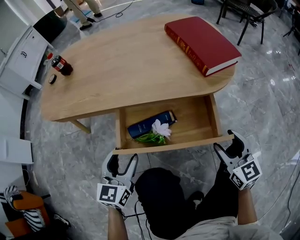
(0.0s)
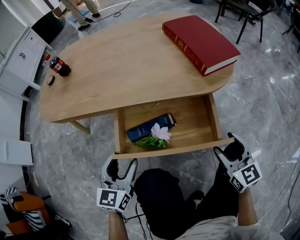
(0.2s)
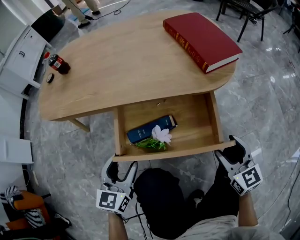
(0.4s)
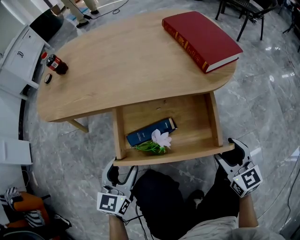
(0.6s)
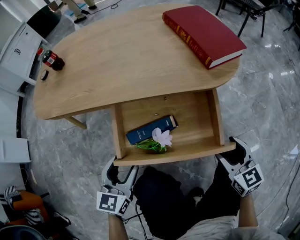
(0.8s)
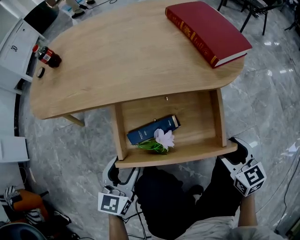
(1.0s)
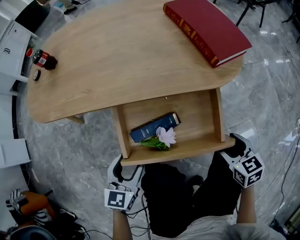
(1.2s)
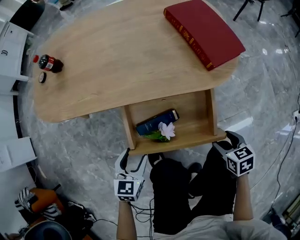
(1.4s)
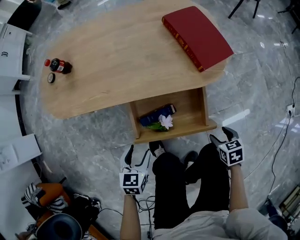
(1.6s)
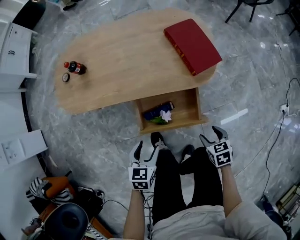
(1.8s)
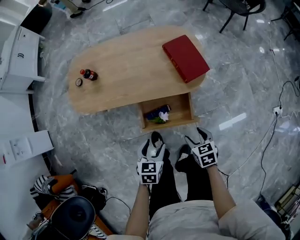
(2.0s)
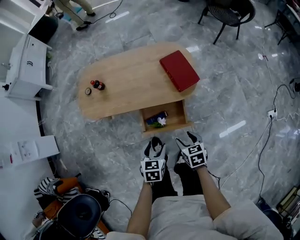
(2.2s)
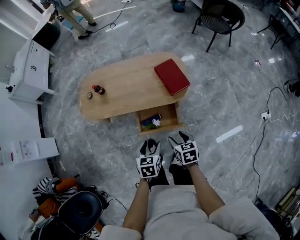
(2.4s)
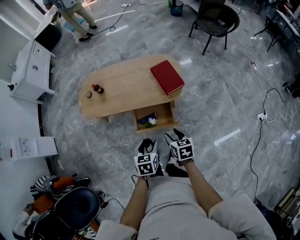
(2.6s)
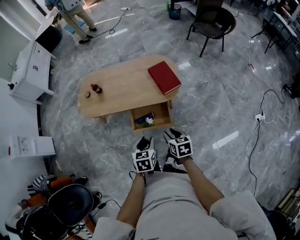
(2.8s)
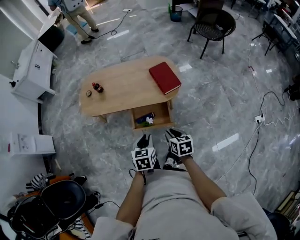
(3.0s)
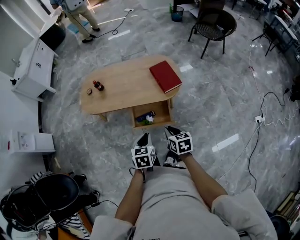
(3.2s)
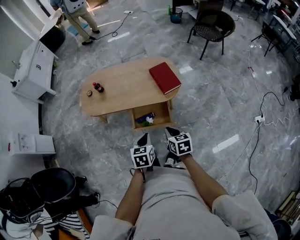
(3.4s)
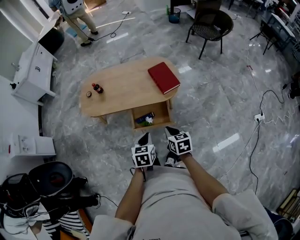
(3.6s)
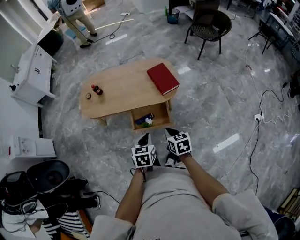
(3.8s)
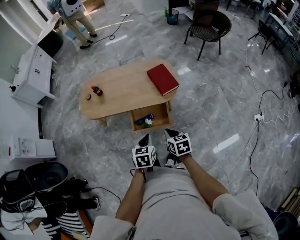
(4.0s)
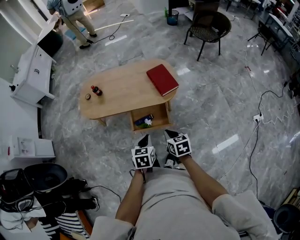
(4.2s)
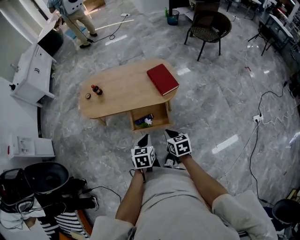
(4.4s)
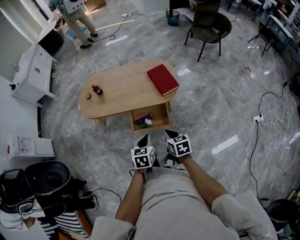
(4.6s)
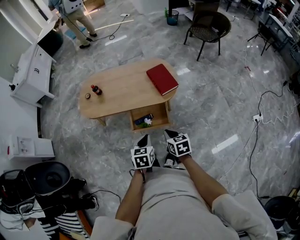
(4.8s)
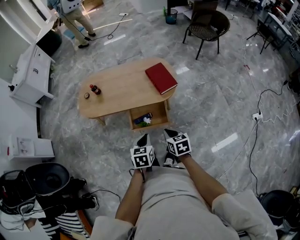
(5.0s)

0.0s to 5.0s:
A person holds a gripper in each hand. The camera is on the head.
0.0s to 1.6s: The left gripper moves roughly 5 cm, and rotates some 30 degrees. The right gripper heads backward, covering about 5 cm, and points its fingers some 50 degrees further downward.
1.6s to 3.4s: The two grippers go about 40 cm upward. The right gripper swivels approximately 30 degrees, and closes its fingers. The left gripper closes its fingers.
3.4s to 5.0s: There are only small adjustments of the grippers.

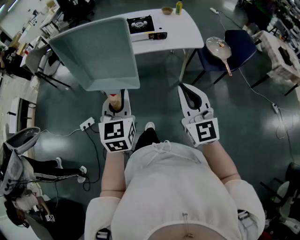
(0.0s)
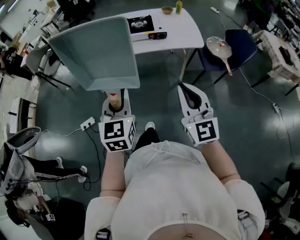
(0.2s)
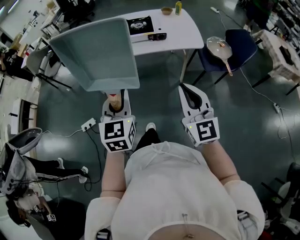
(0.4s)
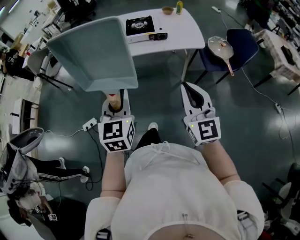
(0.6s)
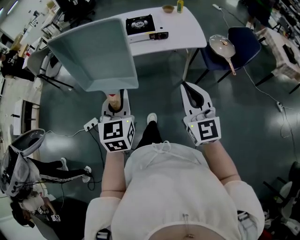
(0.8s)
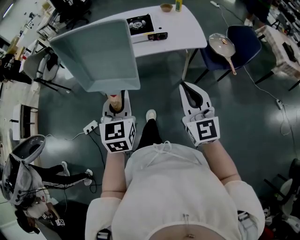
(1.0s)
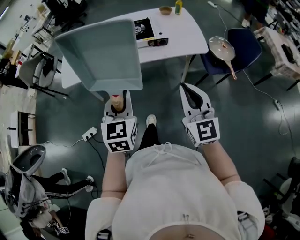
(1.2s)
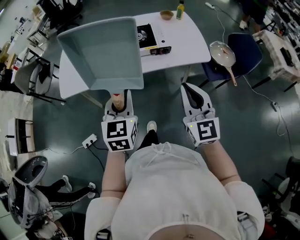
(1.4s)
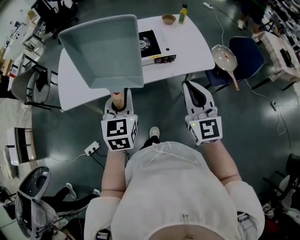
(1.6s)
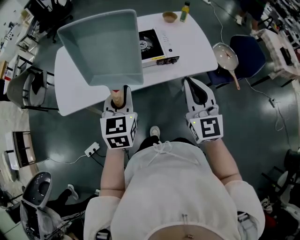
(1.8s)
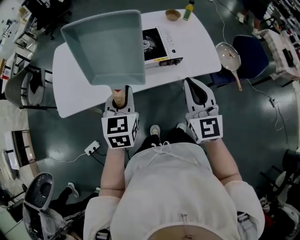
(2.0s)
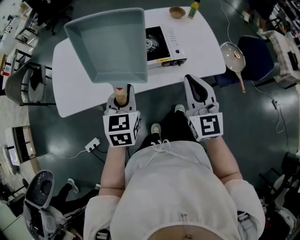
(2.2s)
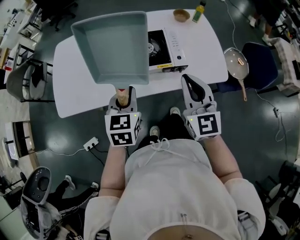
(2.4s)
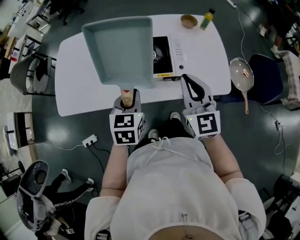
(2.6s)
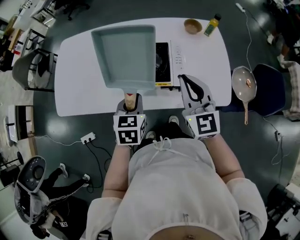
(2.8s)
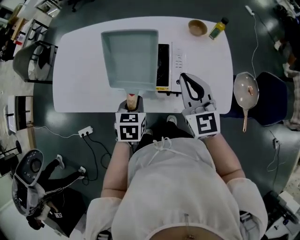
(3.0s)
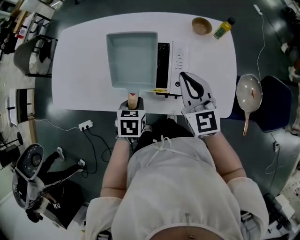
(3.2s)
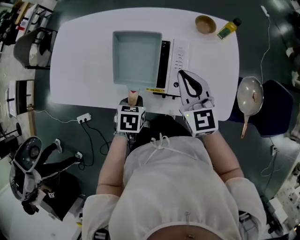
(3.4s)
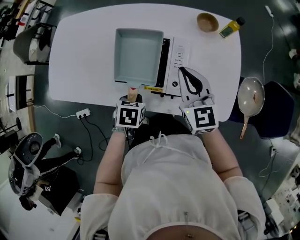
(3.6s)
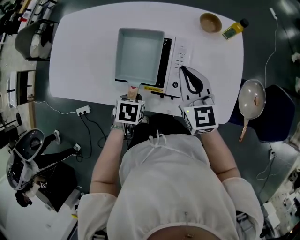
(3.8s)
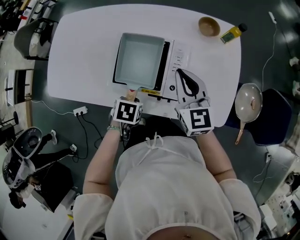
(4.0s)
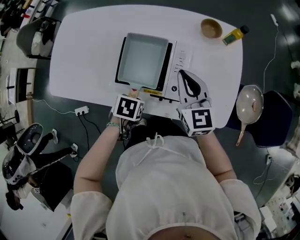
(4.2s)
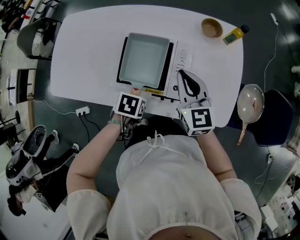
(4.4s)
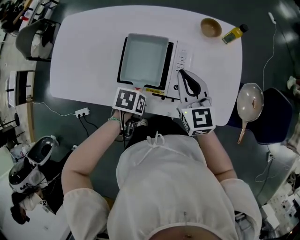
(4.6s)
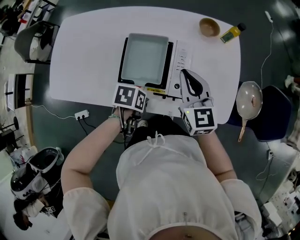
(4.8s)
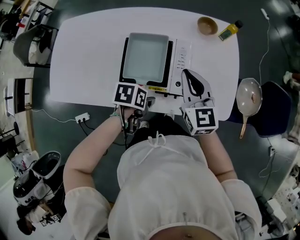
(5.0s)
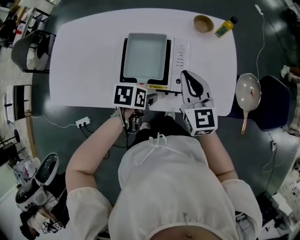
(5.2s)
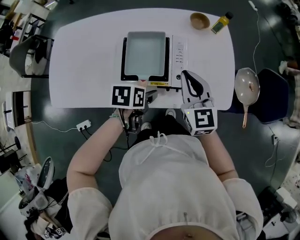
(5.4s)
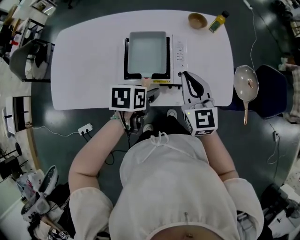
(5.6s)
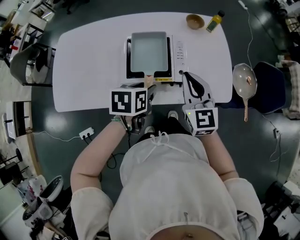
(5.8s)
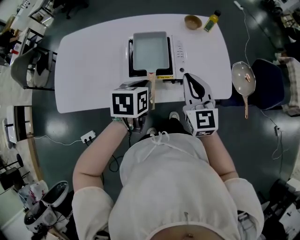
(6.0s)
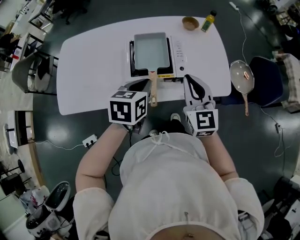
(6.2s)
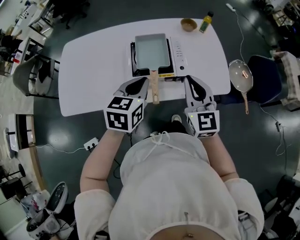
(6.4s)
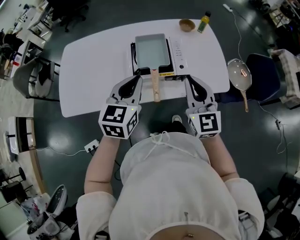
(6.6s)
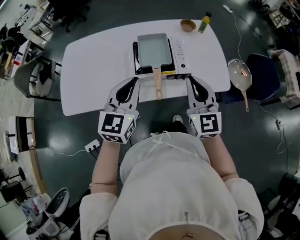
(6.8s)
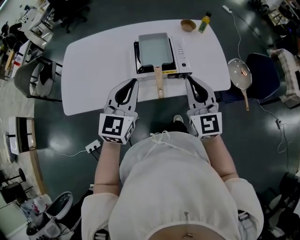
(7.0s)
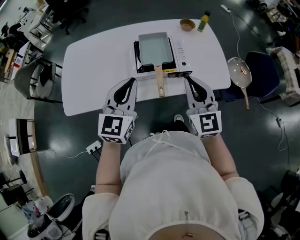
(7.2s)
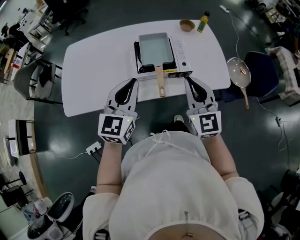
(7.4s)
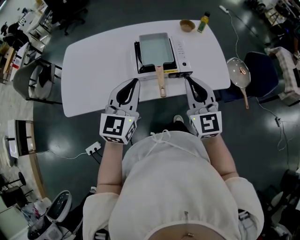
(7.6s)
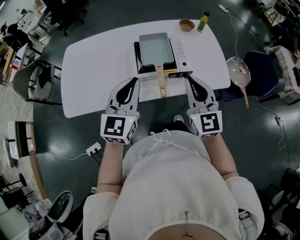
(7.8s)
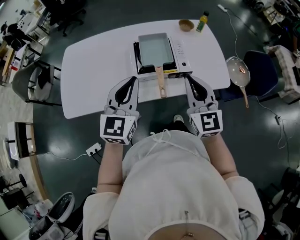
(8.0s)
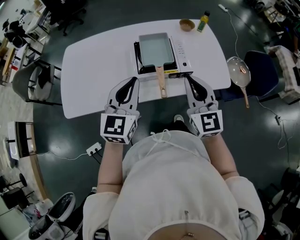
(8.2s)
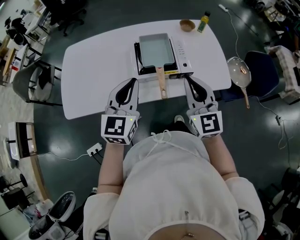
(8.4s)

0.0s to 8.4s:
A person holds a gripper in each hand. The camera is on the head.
0.0s to 1.4s: The two grippers go some 20 cm forward.
1.4s to 2.8s: The right gripper shifts approximately 35 cm forward. Meanwhile the left gripper heads forward and downward, covering roughly 30 cm, and changes its angle by some 20 degrees.
2.8s to 4.2s: The left gripper goes some 15 cm downward, and points its fingers some 40 degrees further downward, while the right gripper changes place by some 15 cm.
4.2s to 5.6s: The left gripper goes some 10 cm upward, turns by approximately 20 degrees, and opens, while the right gripper changes place by about 10 cm.
5.6s to 7.0s: The left gripper is displaced upward, backward and to the left by approximately 25 cm, angles its fingers upward, by about 50 degrees, and closes up; the right gripper goes roughly 15 cm backward and upward.
7.0s to 8.4s: The grippers stay close to where they were, moving slightly.

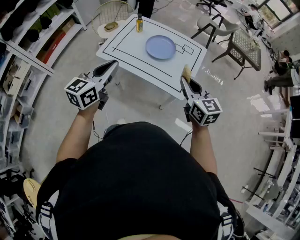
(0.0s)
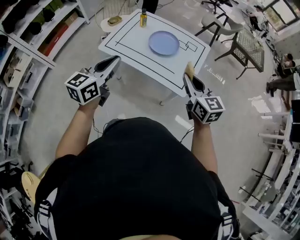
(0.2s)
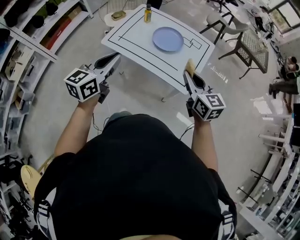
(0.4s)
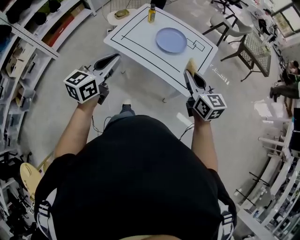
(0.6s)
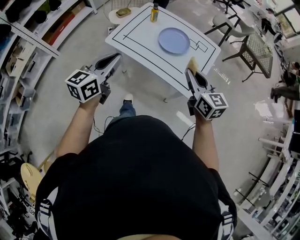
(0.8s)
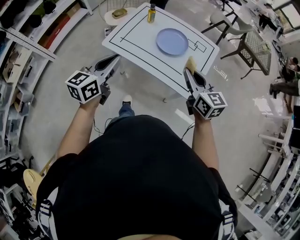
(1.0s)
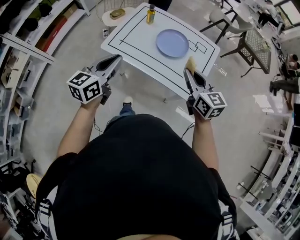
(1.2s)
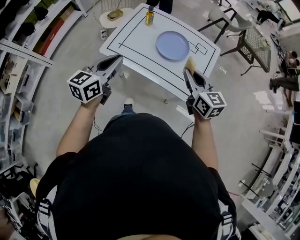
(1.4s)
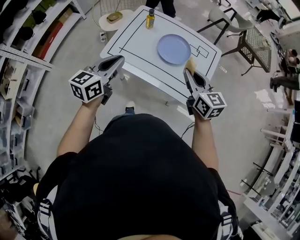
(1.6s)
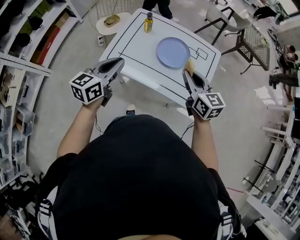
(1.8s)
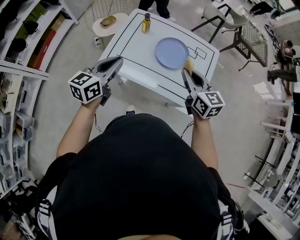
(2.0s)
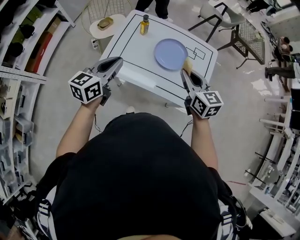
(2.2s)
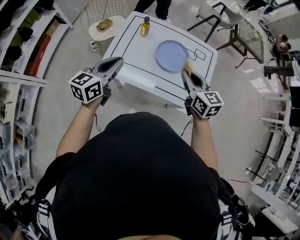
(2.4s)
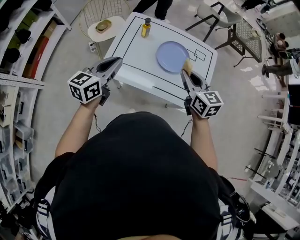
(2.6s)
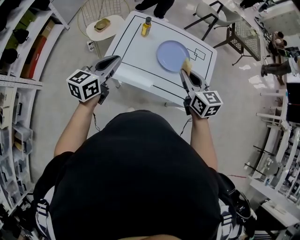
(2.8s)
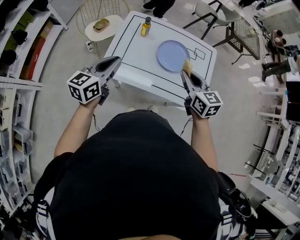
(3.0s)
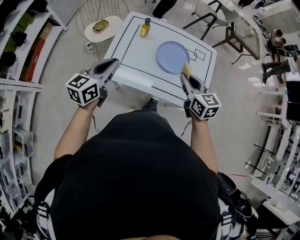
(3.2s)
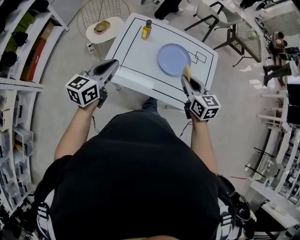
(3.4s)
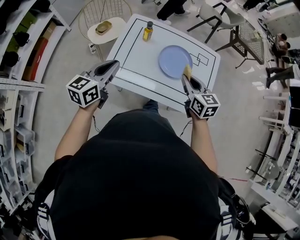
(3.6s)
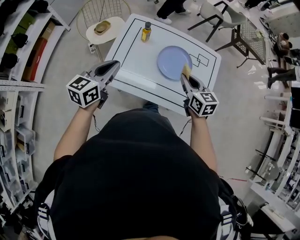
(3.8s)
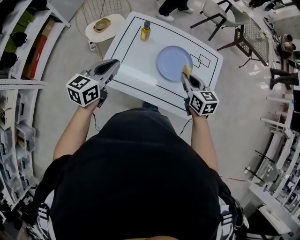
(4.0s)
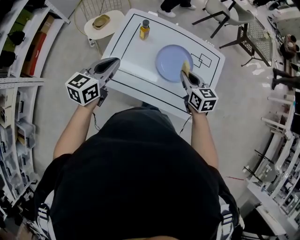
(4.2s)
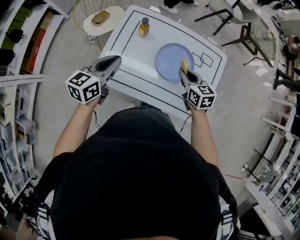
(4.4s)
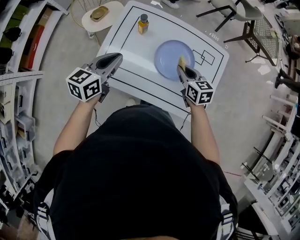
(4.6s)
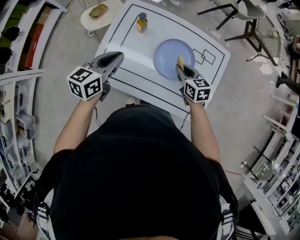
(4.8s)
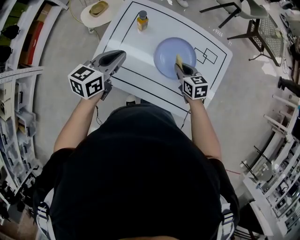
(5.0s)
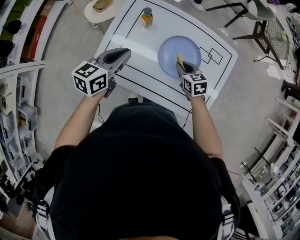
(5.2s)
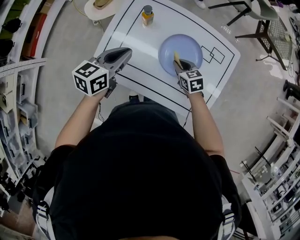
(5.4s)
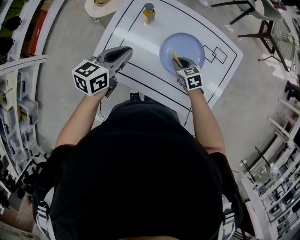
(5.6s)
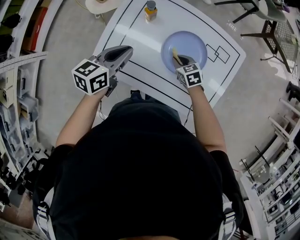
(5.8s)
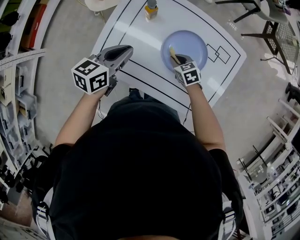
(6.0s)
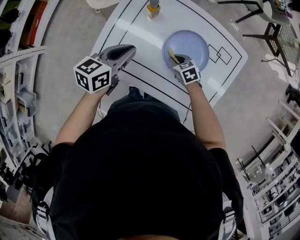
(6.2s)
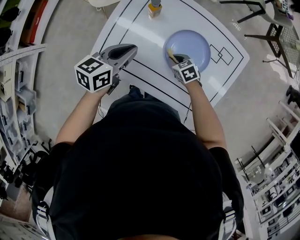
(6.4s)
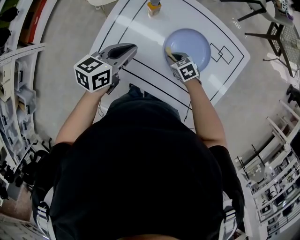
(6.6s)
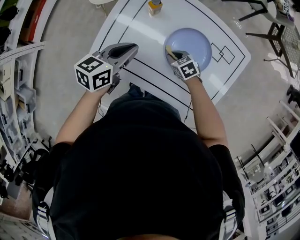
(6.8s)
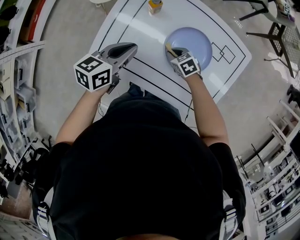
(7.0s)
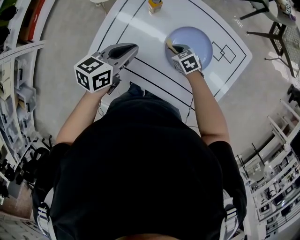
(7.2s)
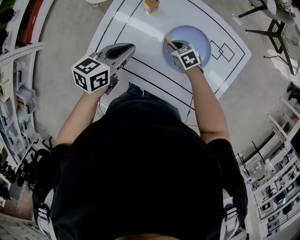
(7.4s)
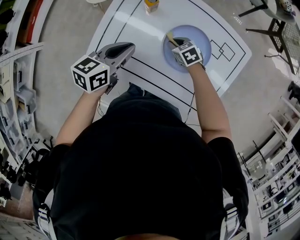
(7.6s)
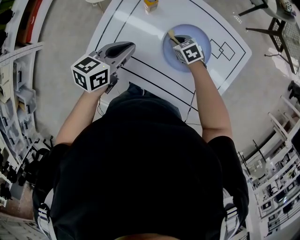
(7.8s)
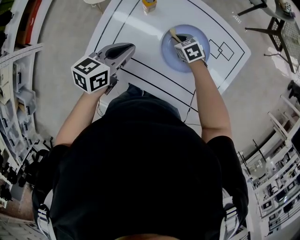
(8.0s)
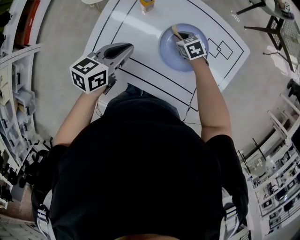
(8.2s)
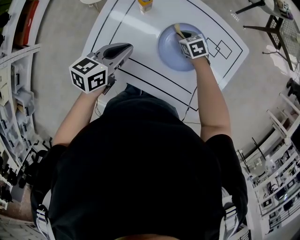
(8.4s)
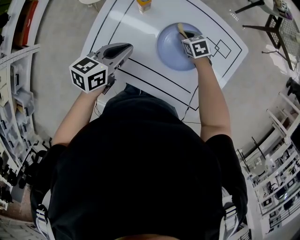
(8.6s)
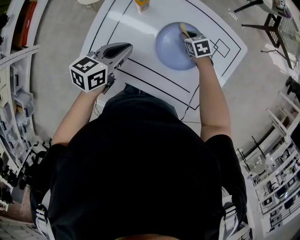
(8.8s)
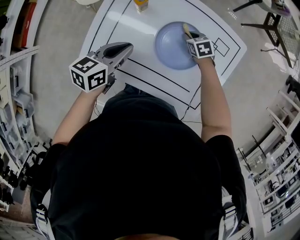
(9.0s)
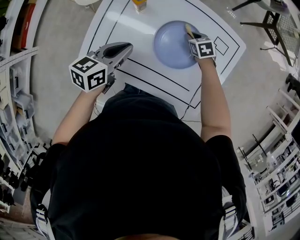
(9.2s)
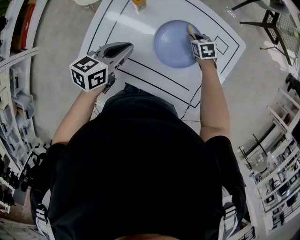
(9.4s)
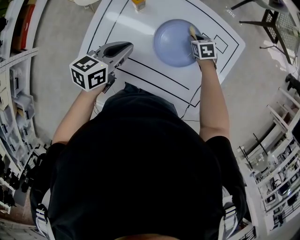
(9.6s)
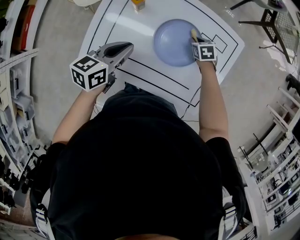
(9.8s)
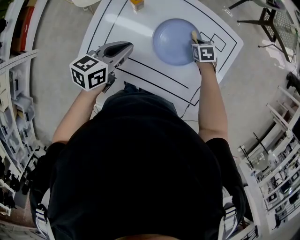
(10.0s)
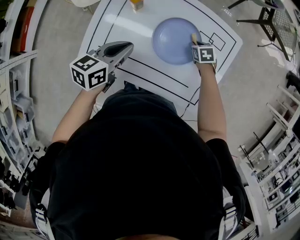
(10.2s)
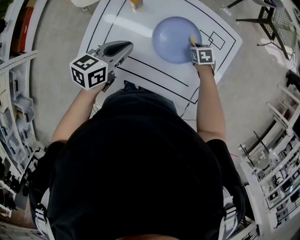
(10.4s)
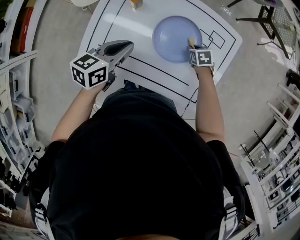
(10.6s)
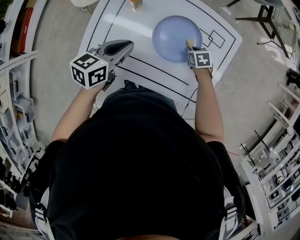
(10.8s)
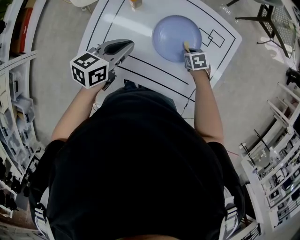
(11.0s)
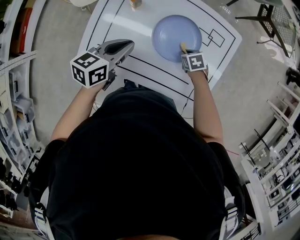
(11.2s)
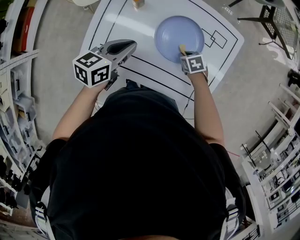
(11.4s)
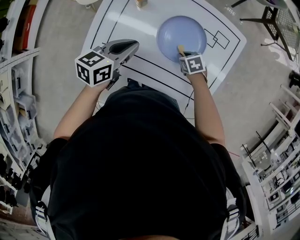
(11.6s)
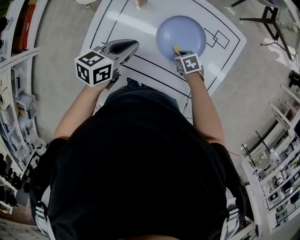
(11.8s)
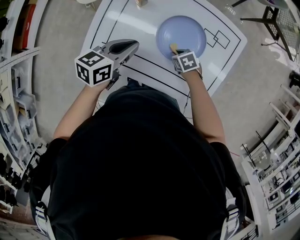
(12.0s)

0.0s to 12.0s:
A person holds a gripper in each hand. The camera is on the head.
0.0s to 1.6s: The left gripper moves forward, to the left and downward, approximately 20 cm. Meanwhile the right gripper shifts roughly 15 cm forward and to the left.
1.6s to 3.0s: The left gripper shifts roughly 15 cm forward and to the left. Meanwhile the right gripper heads to the left and forward, covering some 10 cm.
3.0s to 4.4s: Both grippers travel together forward and downward, some 15 cm.
4.4s to 6.0s: The left gripper goes roughly 10 cm downward. The right gripper goes roughly 20 cm downward, and rotates approximately 30 degrees.
6.0s to 7.6s: The right gripper heads forward, covering approximately 5 cm.
7.6s to 9.0s: The right gripper goes approximately 10 cm to the right.
9.0s to 10.4s: The right gripper travels to the right and backward by some 10 cm.
10.4s to 12.0s: The right gripper moves about 15 cm.
